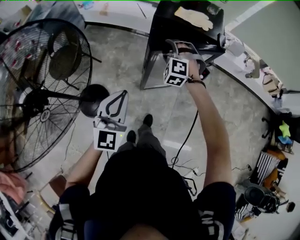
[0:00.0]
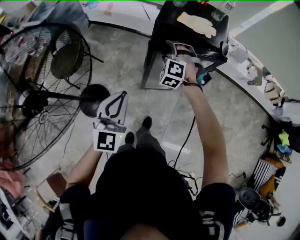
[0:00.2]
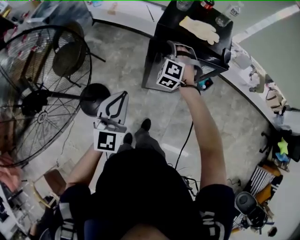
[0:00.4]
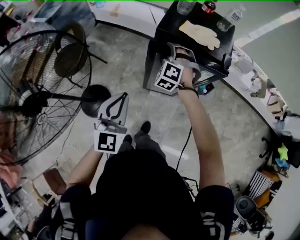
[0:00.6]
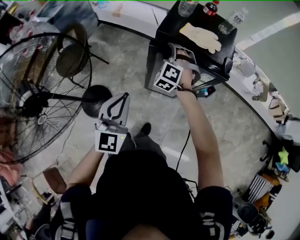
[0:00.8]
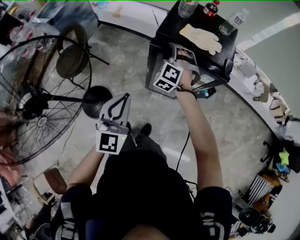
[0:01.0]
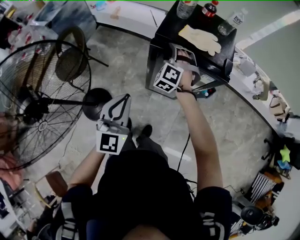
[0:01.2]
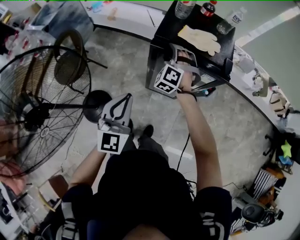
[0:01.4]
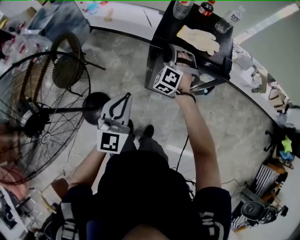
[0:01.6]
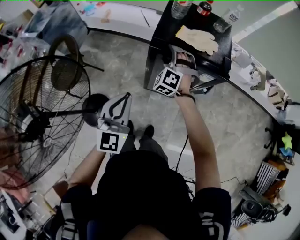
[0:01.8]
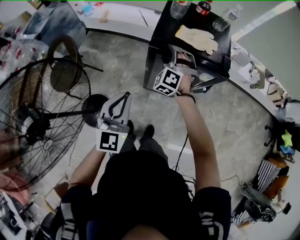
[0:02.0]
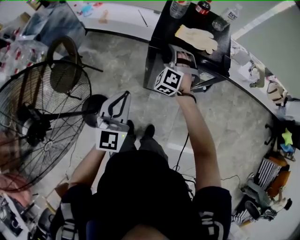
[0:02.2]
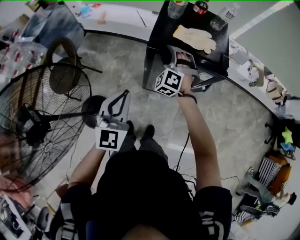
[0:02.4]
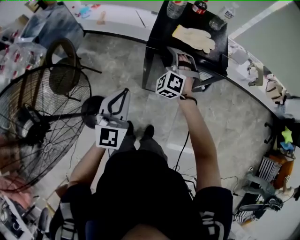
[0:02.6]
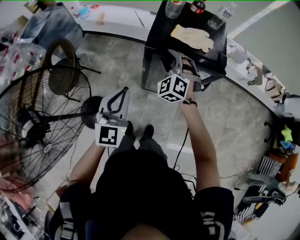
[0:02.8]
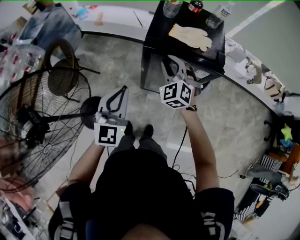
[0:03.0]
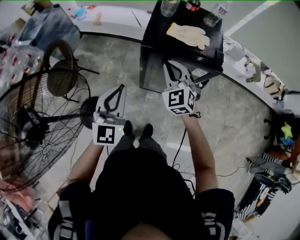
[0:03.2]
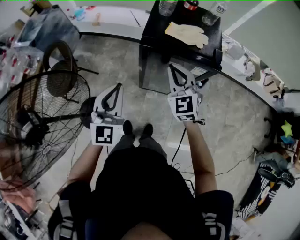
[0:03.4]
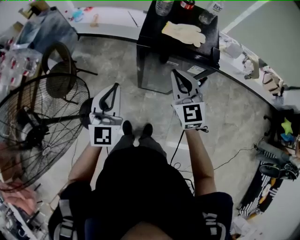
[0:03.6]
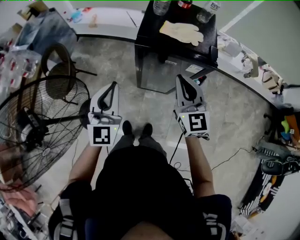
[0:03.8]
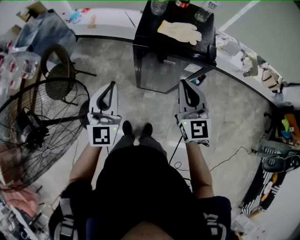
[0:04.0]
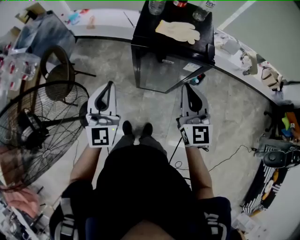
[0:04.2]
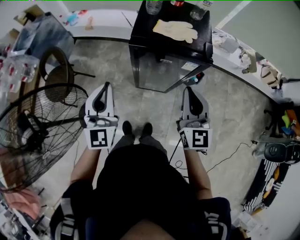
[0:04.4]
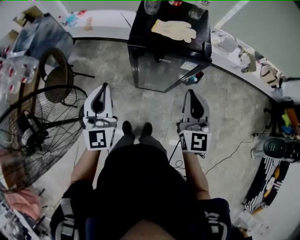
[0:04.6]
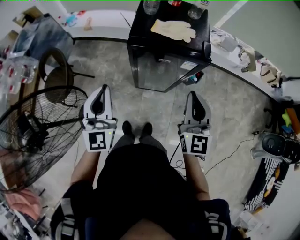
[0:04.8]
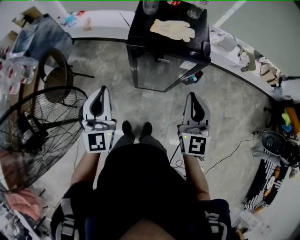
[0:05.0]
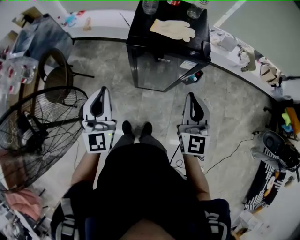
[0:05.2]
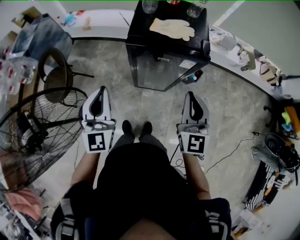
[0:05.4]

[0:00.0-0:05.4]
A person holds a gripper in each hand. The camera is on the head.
0:00.0 to 0:01.4: Both grippers travel together forward, roughly 15 cm.
0:01.4 to 0:02.8: The grippers make only small movements.
0:02.8 to 0:04.0: The right gripper is displaced backward, upward and to the right by some 20 cm, twists some 50 degrees clockwise, seen from behind, and closes.
0:04.0 to 0:05.4: The right gripper shifts by approximately 5 cm.

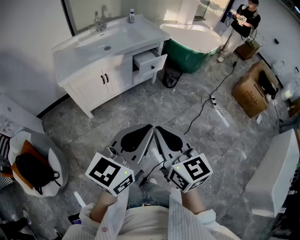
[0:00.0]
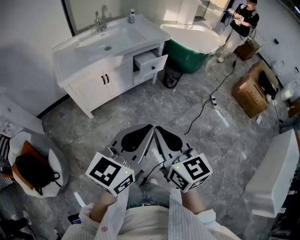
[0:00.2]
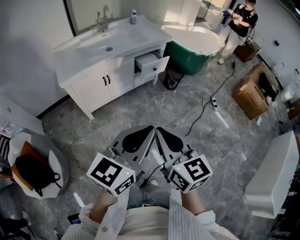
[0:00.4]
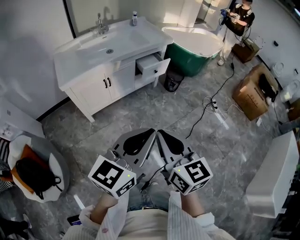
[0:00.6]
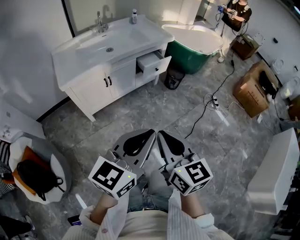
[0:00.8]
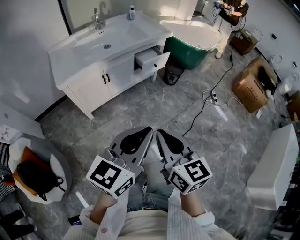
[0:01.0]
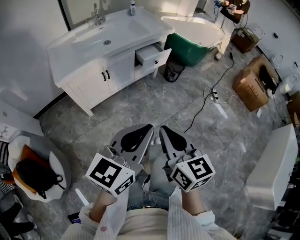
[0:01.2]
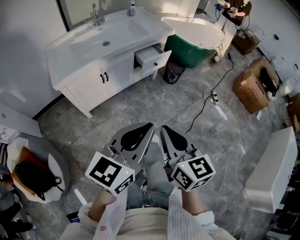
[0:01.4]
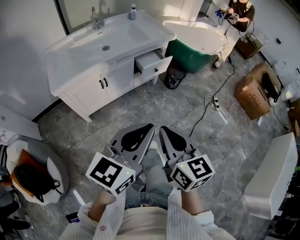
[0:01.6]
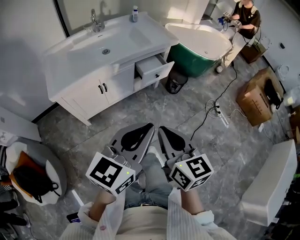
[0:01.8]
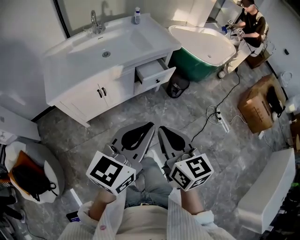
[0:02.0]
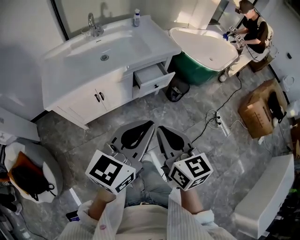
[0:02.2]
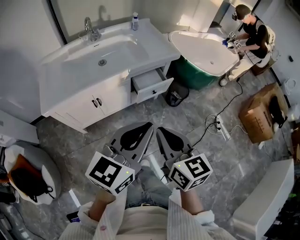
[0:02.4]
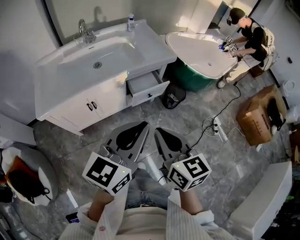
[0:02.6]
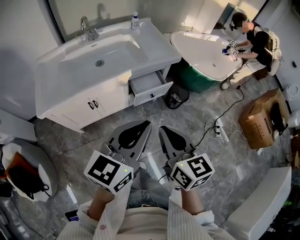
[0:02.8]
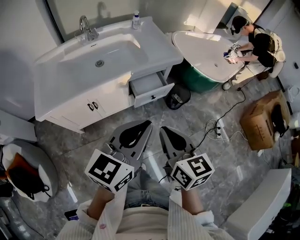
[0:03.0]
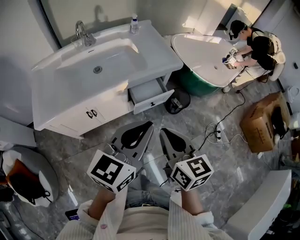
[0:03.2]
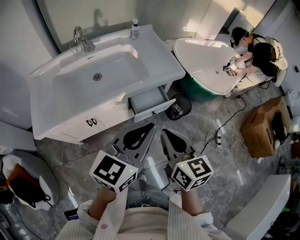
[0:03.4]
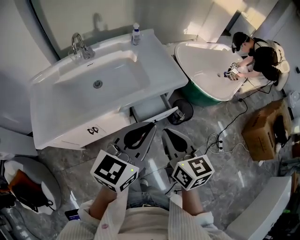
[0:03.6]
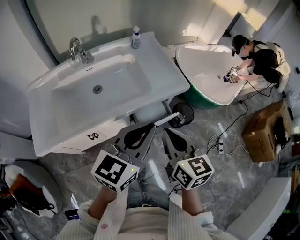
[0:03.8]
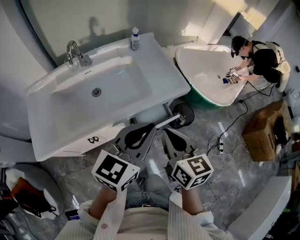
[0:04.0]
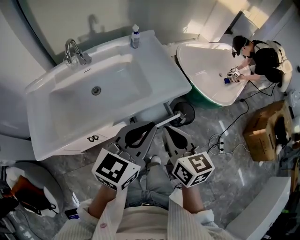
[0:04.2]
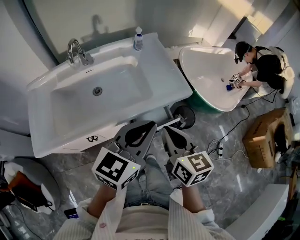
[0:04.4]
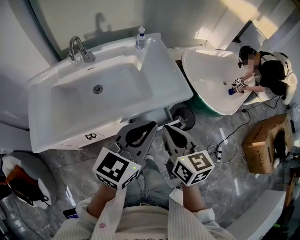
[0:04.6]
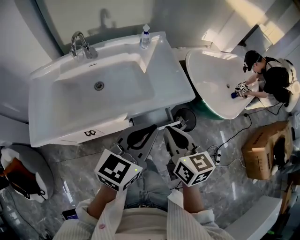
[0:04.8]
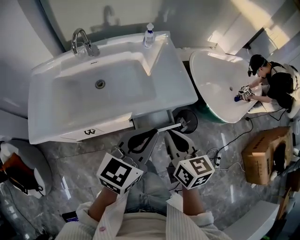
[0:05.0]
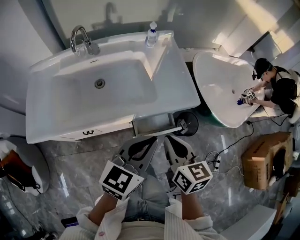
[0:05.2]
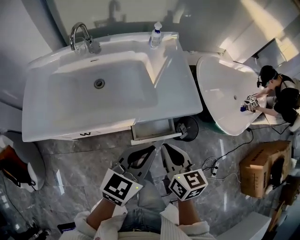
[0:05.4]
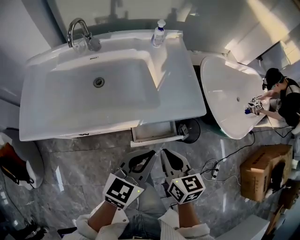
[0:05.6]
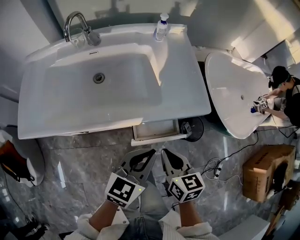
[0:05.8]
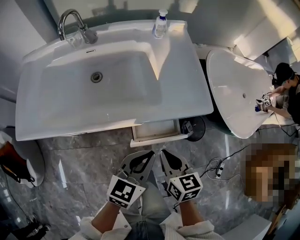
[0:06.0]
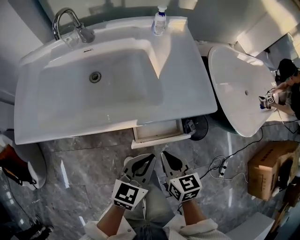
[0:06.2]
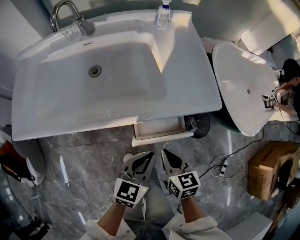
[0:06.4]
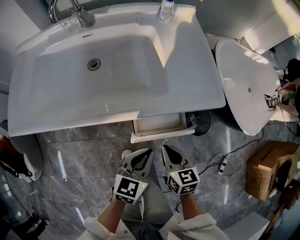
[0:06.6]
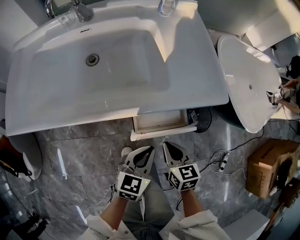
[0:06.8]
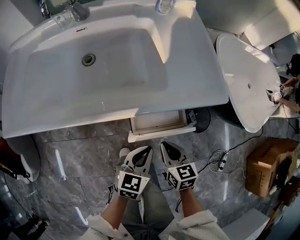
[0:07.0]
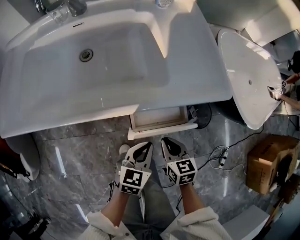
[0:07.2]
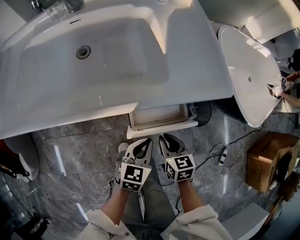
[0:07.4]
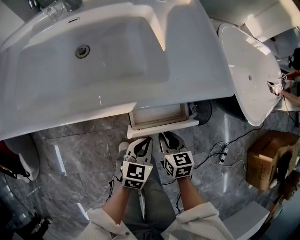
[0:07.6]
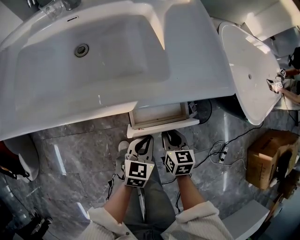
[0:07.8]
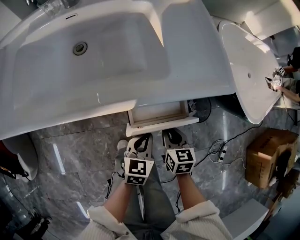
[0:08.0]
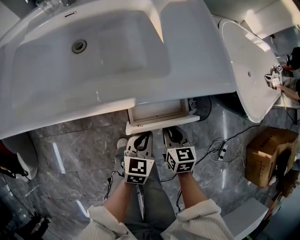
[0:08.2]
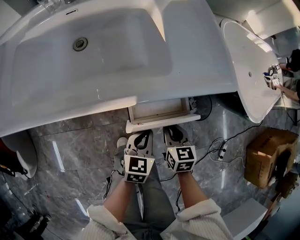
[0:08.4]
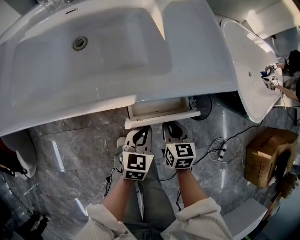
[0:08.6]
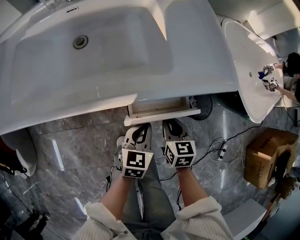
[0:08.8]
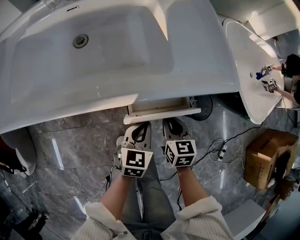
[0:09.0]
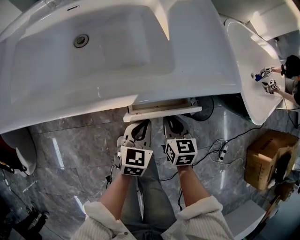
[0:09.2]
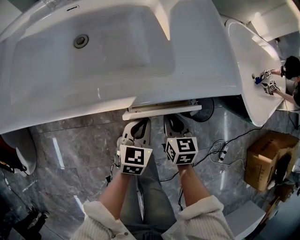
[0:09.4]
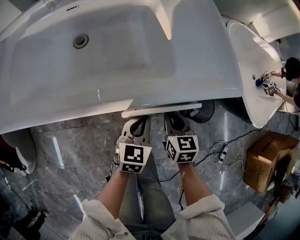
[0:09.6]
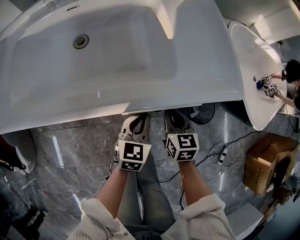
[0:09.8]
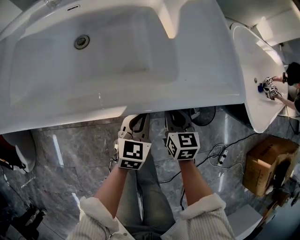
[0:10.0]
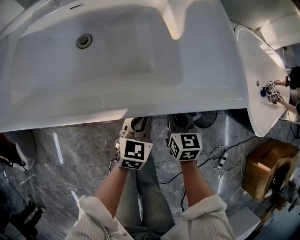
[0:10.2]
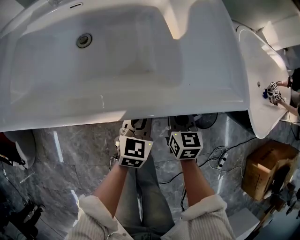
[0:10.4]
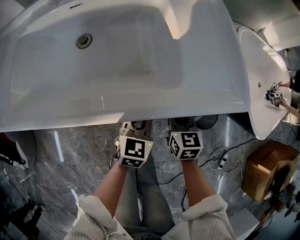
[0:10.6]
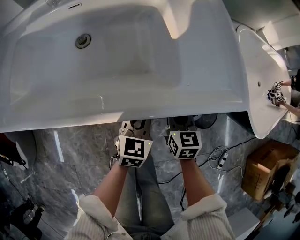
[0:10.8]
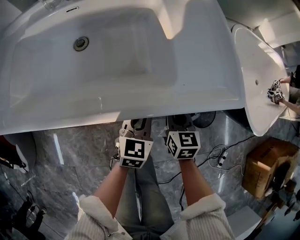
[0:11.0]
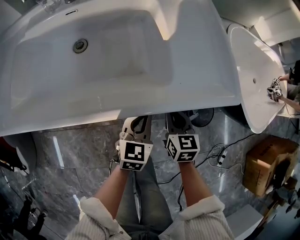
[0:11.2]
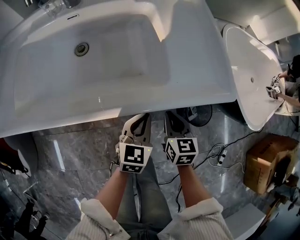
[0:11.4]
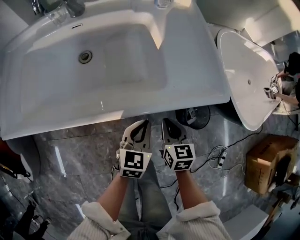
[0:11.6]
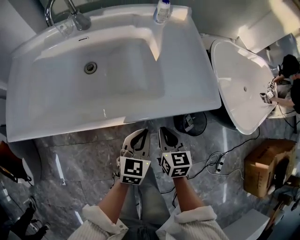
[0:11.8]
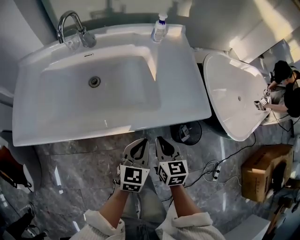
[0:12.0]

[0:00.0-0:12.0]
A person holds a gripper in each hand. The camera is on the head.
0:00.0 to 0:01.6: The grippers both shift forward by roughly 10 cm.
0:01.6 to 0:03.0: The two grippers go about 30 cm forward.
0:03.0 to 0:04.4: Both grippers move forward, about 25 cm.
0:04.4 to 0:06.0: The grippers both shift downward by approximately 20 cm. The left gripper turns by roughly 20 degrees.
0:06.0 to 0:07.6: The grippers both shift downward by about 20 cm.
0:07.6 to 0:09.0: The grippers make only small movements.
0:09.0 to 0:10.4: Both grippers travel together forward, some 10 cm.
0:10.4 to 0:12.0: The two grippers go about 15 cm upward and backward.

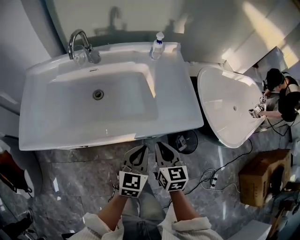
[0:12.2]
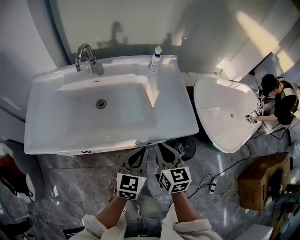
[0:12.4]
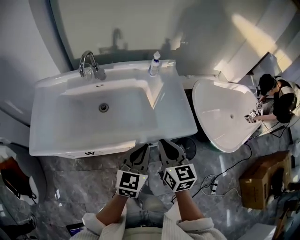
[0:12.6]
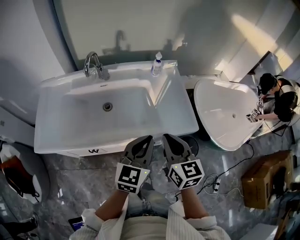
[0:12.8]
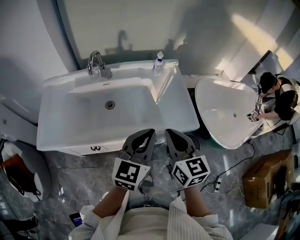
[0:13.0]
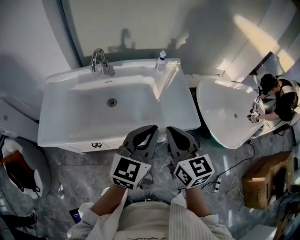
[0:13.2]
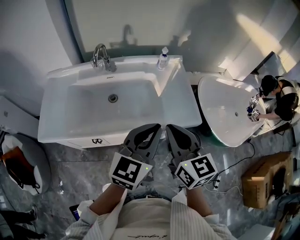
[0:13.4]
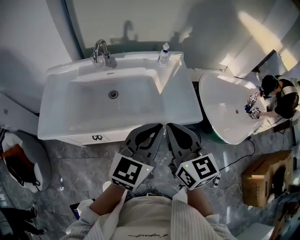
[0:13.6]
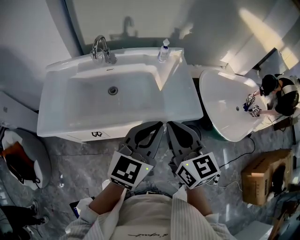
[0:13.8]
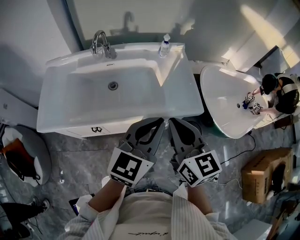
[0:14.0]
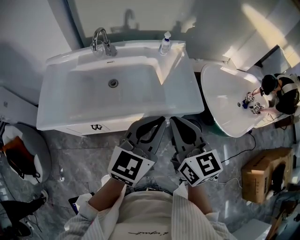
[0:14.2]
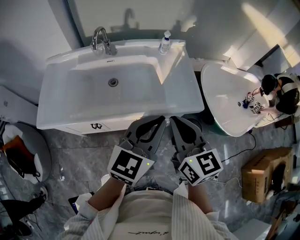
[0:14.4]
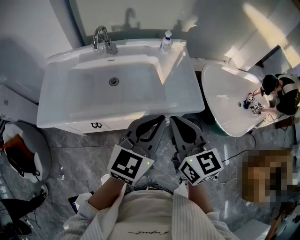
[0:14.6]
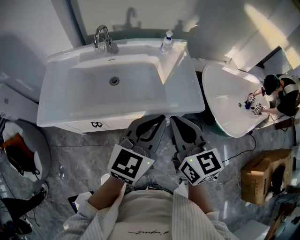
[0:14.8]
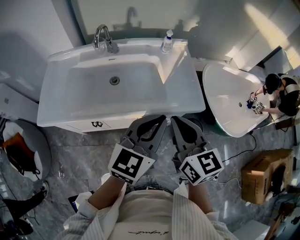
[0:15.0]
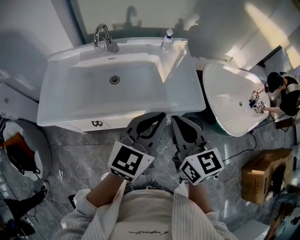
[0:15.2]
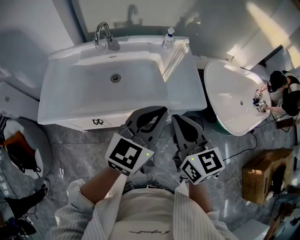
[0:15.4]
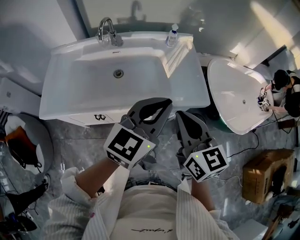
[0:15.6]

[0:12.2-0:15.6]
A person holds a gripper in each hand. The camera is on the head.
0:12.2 to 0:13.8: Both grippers move upward, approximately 25 cm. The right gripper rotates roughly 20 degrees.
0:13.8 to 0:15.6: The grippers make only small movements.

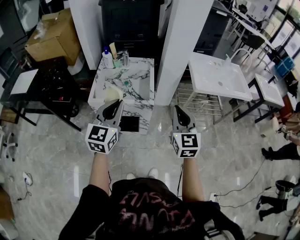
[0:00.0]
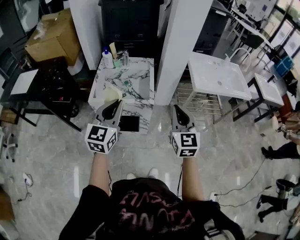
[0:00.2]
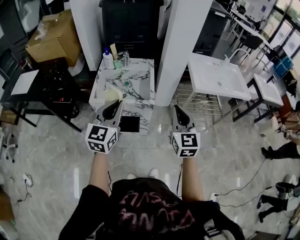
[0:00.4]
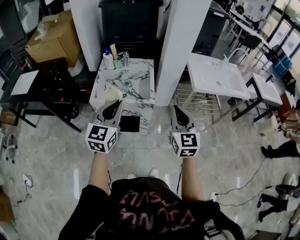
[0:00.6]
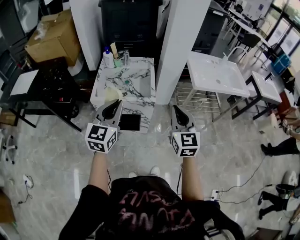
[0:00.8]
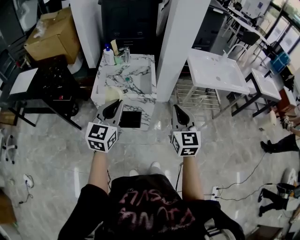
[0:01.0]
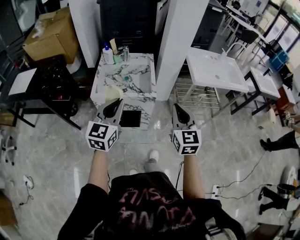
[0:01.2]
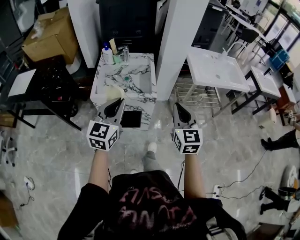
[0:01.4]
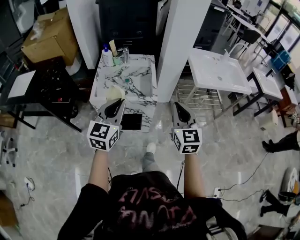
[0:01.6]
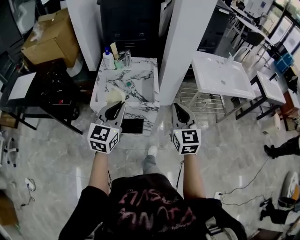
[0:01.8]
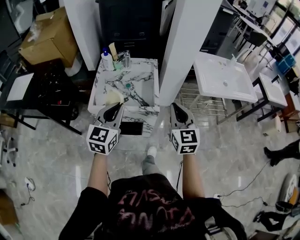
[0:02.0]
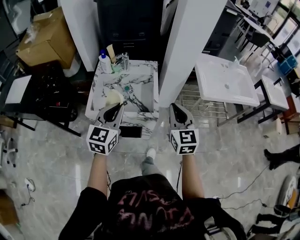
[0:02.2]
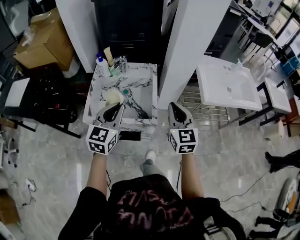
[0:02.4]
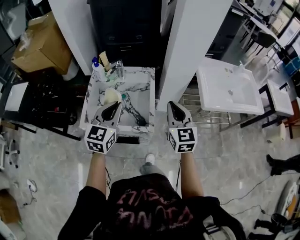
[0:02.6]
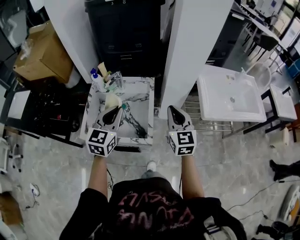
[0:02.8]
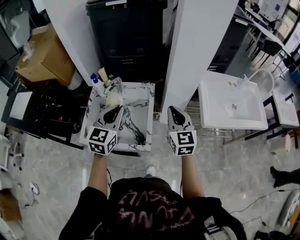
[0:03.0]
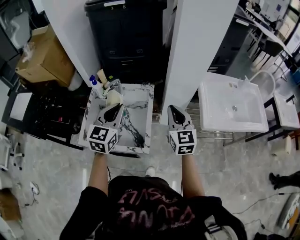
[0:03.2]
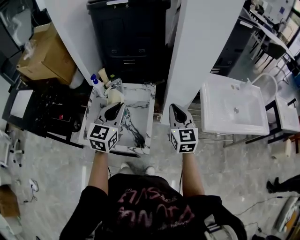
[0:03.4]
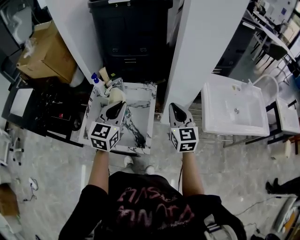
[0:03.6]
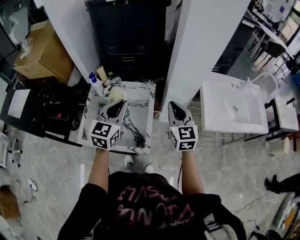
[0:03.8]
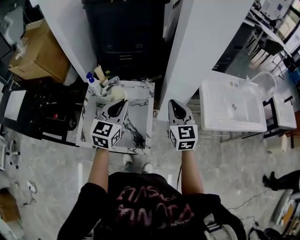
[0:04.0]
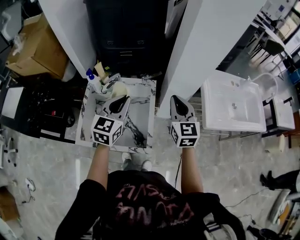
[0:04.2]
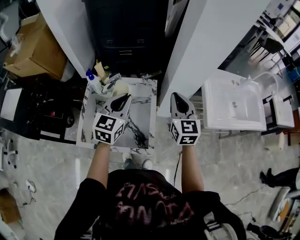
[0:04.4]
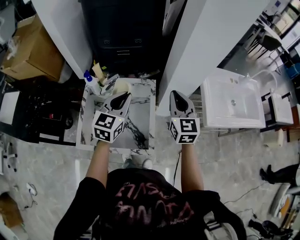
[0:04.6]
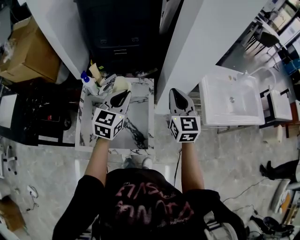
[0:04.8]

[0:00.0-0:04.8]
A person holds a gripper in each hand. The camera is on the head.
0:00.0 to 0:01.6: The grippers stay close to where they were, moving slightly.
0:01.6 to 0:03.2: The grippers both shift forward by some 35 cm.
0:03.2 to 0:04.8: The two grippers go roughly 10 cm forward.
